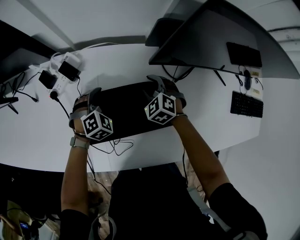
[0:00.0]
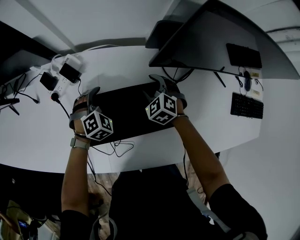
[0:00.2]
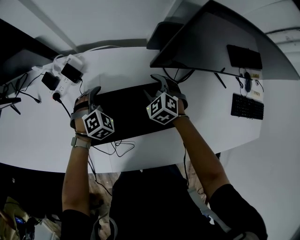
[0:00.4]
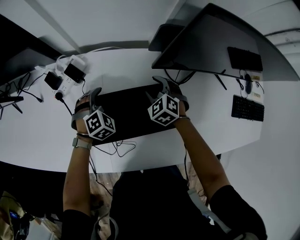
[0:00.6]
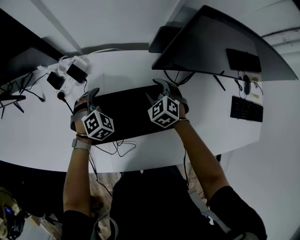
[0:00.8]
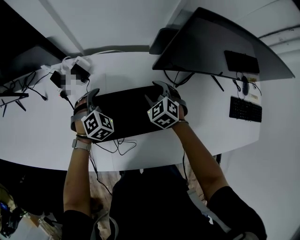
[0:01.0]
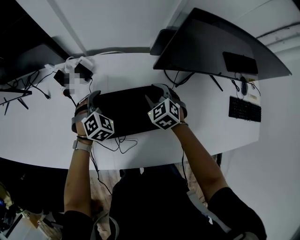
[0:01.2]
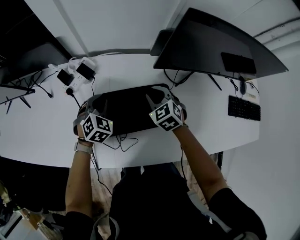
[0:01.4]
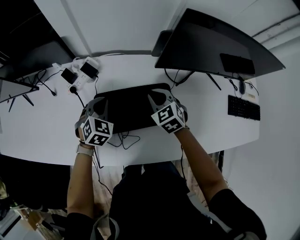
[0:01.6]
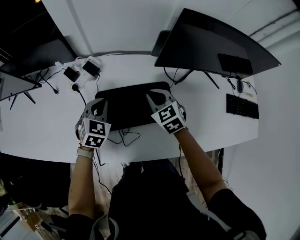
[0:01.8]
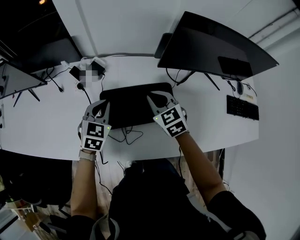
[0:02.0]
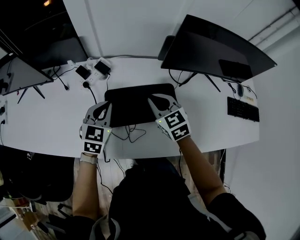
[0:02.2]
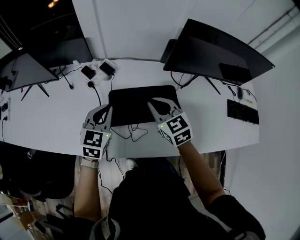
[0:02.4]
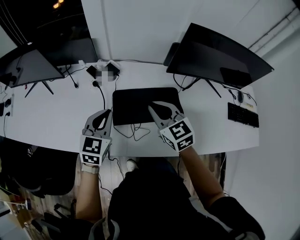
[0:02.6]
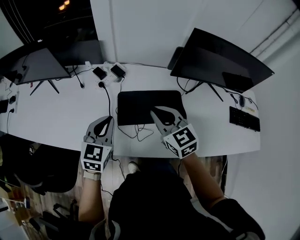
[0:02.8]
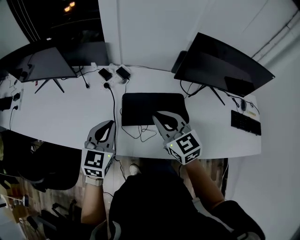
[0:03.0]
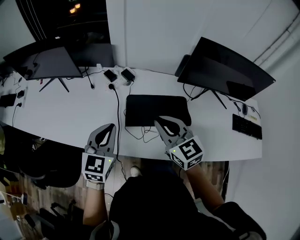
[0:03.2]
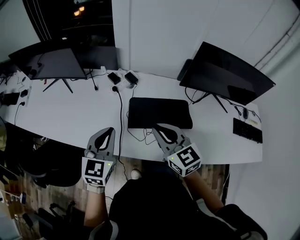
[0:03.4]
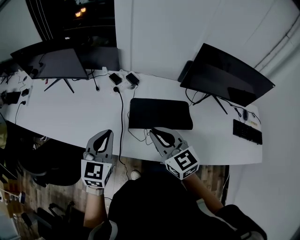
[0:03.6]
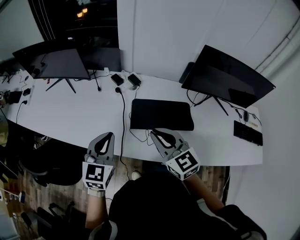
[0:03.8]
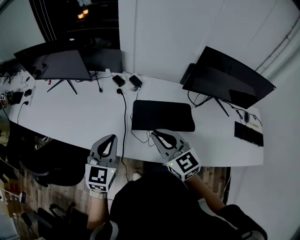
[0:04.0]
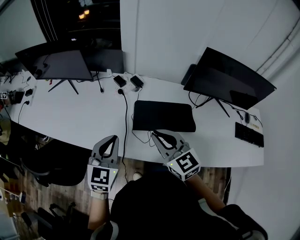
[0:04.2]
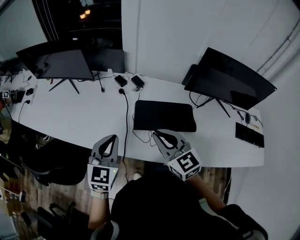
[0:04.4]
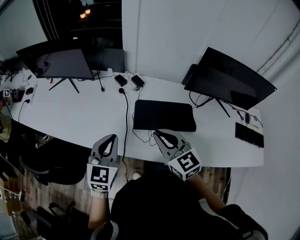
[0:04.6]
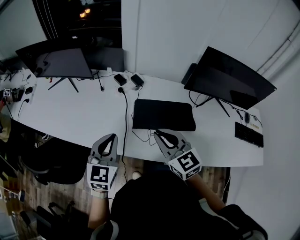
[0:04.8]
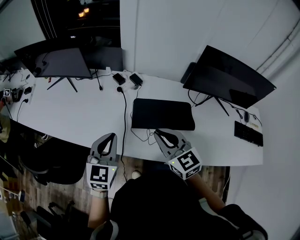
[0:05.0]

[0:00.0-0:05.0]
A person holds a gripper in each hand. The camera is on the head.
0:00.0 to 0:01.6: The two grippers go some 10 cm upward and backward. The right gripper closes up; the left gripper turns by approximately 20 degrees, and closes up.
0:01.6 to 0:03.4: Both grippers move backward, upward and to the left, about 35 cm. The right gripper turns by some 30 degrees, while the left gripper rotates approximately 40 degrees.
0:03.4 to 0:05.0: The grippers make only small movements.

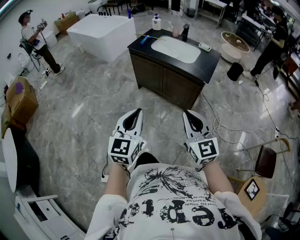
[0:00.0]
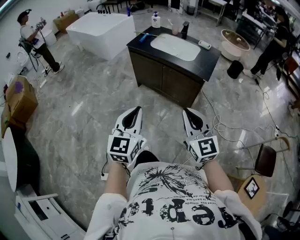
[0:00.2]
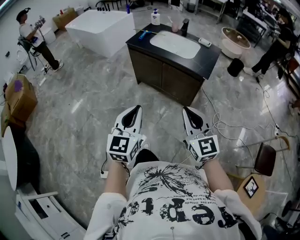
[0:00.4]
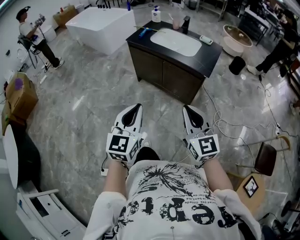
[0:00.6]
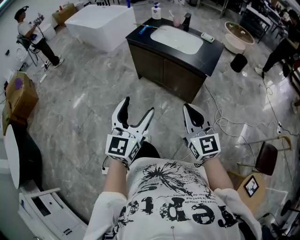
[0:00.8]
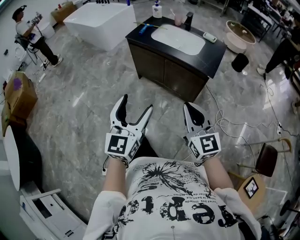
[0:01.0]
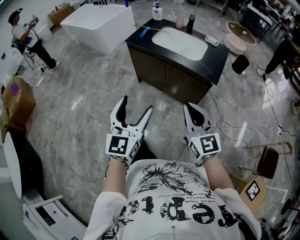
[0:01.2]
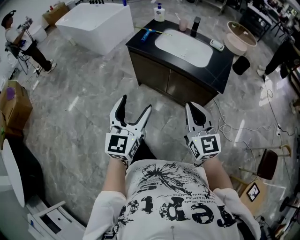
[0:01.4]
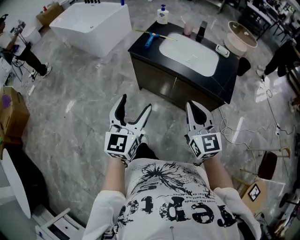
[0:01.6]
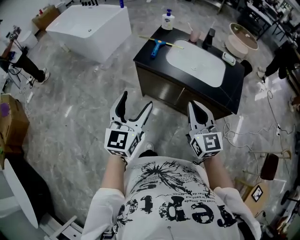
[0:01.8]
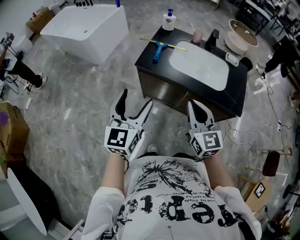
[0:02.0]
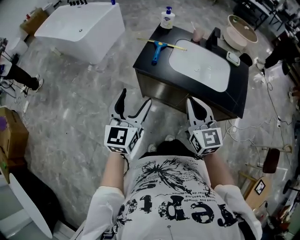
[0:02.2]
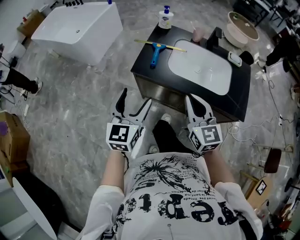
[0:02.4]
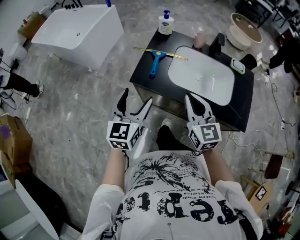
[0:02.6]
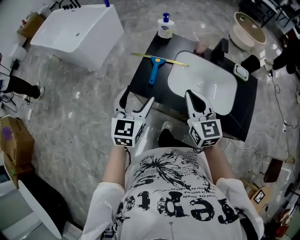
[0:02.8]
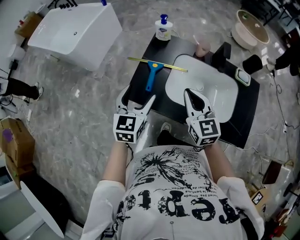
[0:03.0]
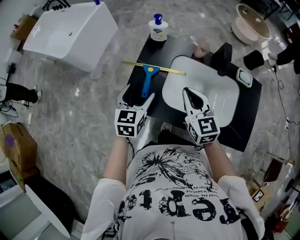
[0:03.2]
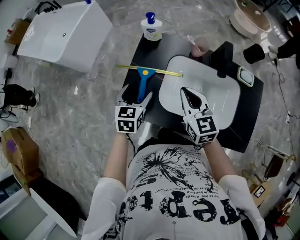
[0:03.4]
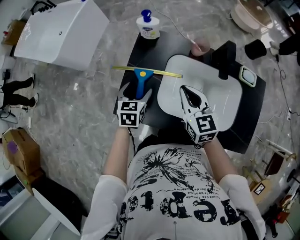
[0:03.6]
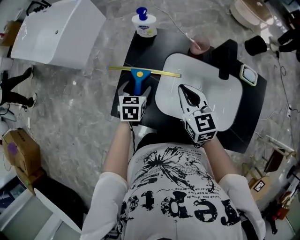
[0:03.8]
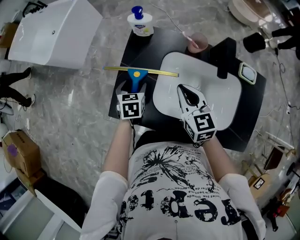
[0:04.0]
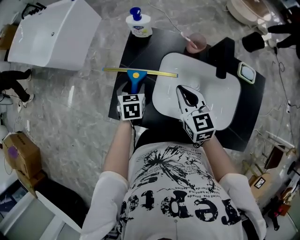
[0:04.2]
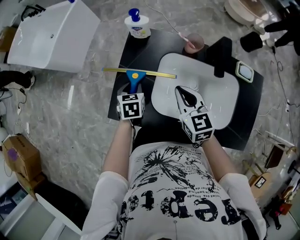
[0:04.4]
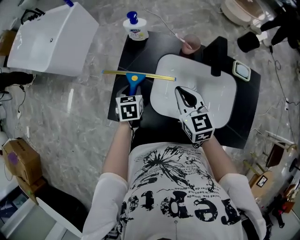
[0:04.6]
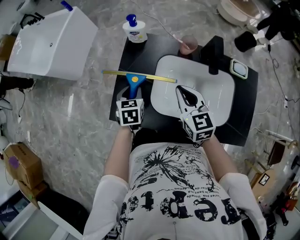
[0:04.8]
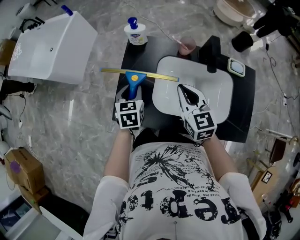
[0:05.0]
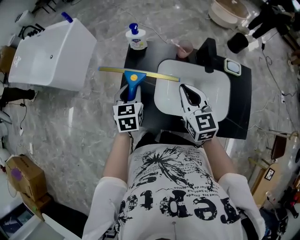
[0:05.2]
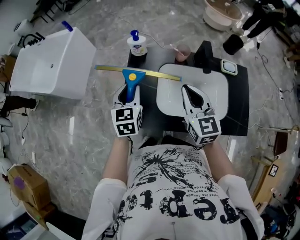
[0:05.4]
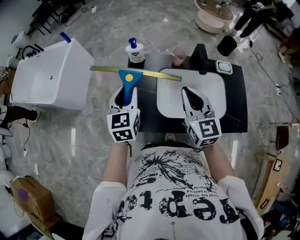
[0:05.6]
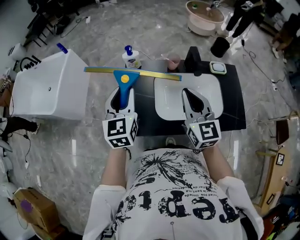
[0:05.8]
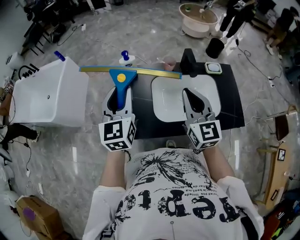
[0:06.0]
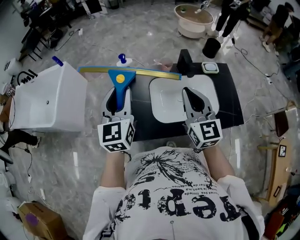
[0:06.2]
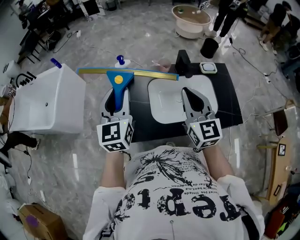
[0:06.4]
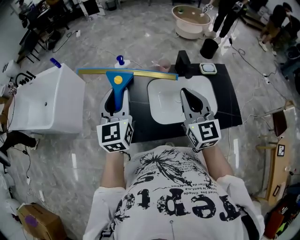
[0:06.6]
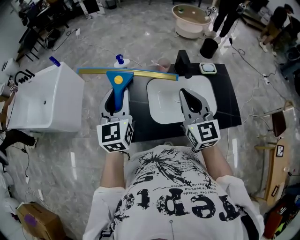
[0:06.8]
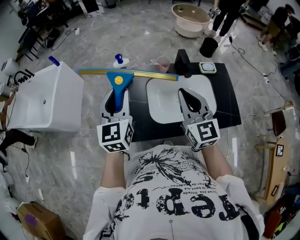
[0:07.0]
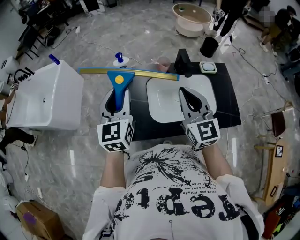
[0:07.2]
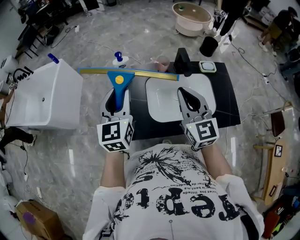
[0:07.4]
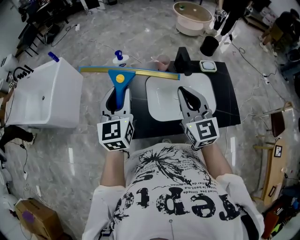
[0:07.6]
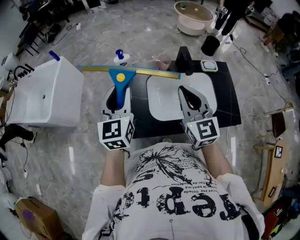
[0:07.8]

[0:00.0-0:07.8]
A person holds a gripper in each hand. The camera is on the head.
0:00.0 to 0:01.6: The two grippers go approximately 35 cm forward. The left gripper opens its fingers.
0:01.6 to 0:03.2: The two grippers travel together, forward, roughly 60 cm. The left gripper swivels about 30 degrees.
0:03.2 to 0:04.6: The left gripper moves downward and forward, approximately 20 cm, rotates approximately 20 degrees, and closes its fingers. Meanwhile the right gripper moves downward and forward, approximately 10 cm.
0:04.6 to 0:06.2: The right gripper travels upward and backward by approximately 25 cm, and changes its angle by about 40 degrees; the left gripper is displaced upward by roughly 35 cm, and tips its fingers upward by approximately 50 degrees.
0:06.2 to 0:07.8: The grippers make only small movements.

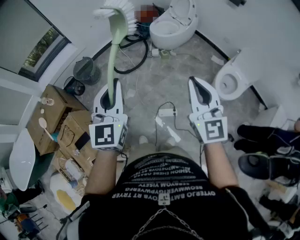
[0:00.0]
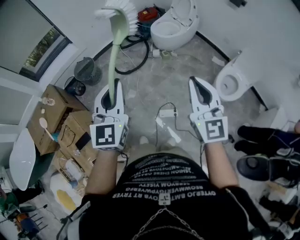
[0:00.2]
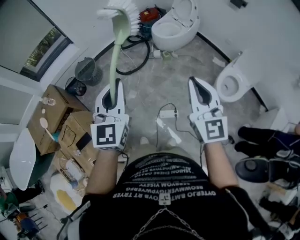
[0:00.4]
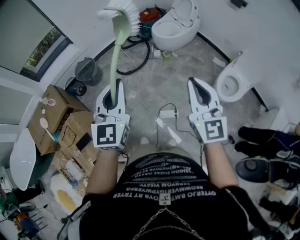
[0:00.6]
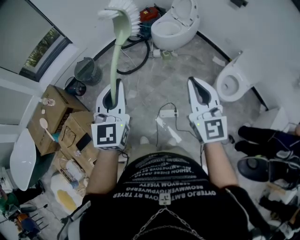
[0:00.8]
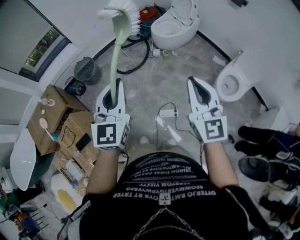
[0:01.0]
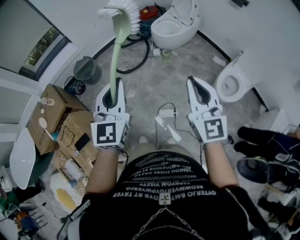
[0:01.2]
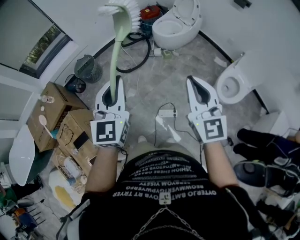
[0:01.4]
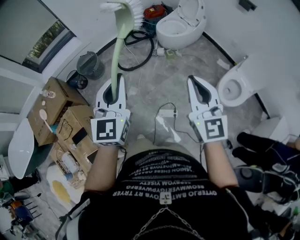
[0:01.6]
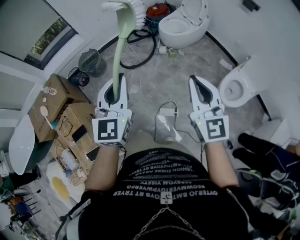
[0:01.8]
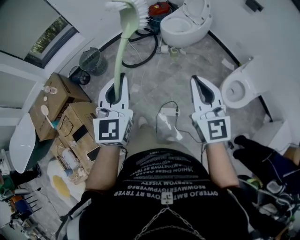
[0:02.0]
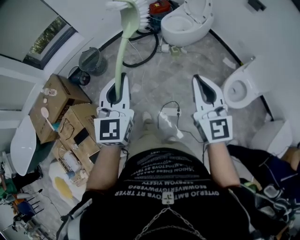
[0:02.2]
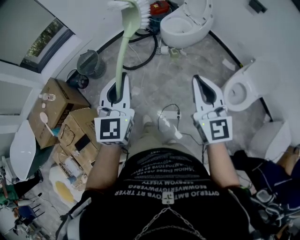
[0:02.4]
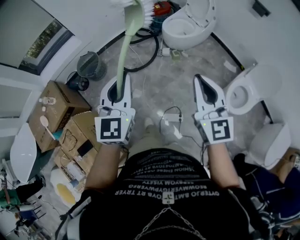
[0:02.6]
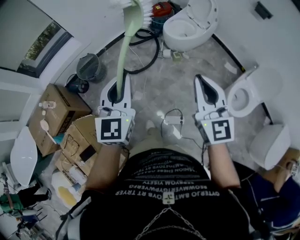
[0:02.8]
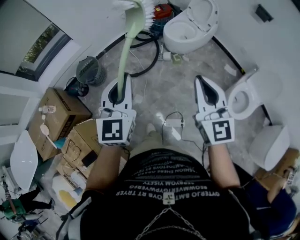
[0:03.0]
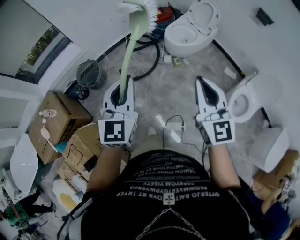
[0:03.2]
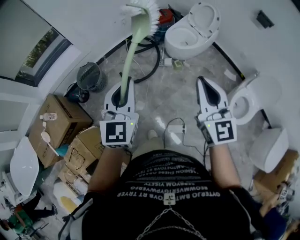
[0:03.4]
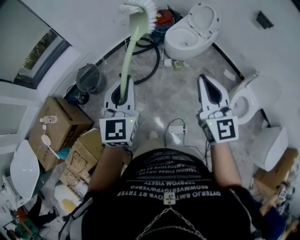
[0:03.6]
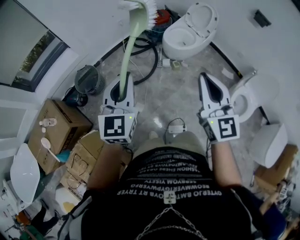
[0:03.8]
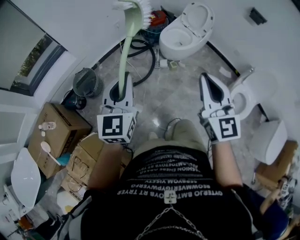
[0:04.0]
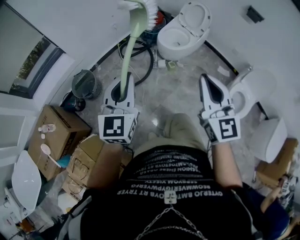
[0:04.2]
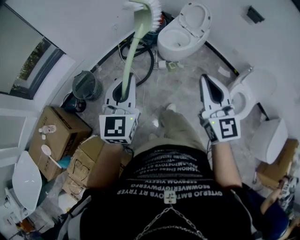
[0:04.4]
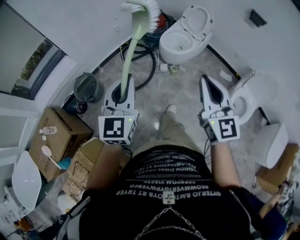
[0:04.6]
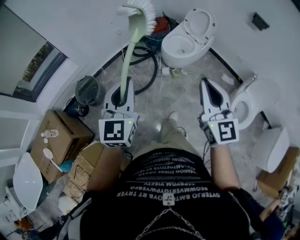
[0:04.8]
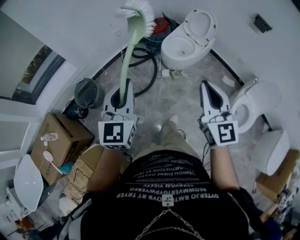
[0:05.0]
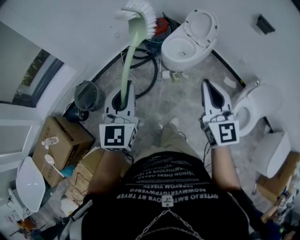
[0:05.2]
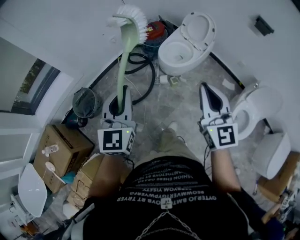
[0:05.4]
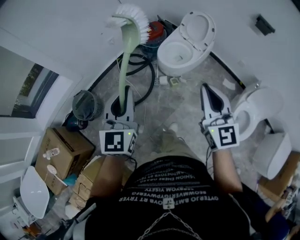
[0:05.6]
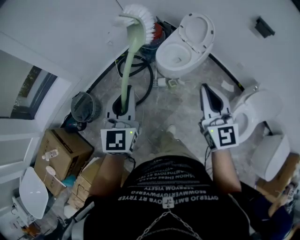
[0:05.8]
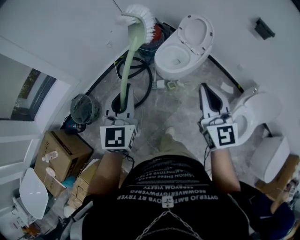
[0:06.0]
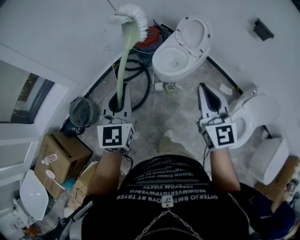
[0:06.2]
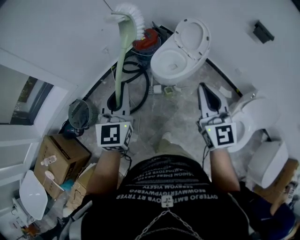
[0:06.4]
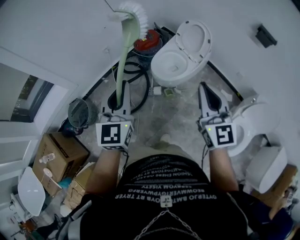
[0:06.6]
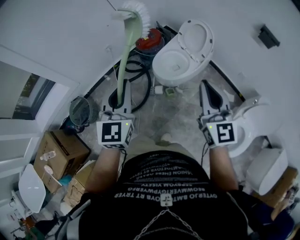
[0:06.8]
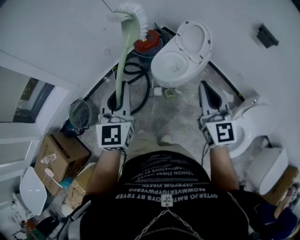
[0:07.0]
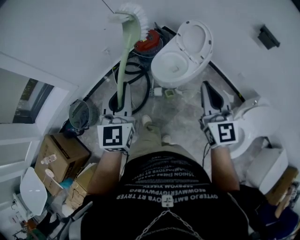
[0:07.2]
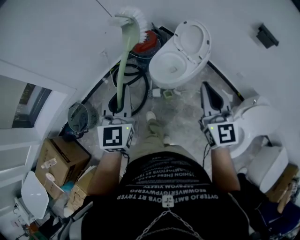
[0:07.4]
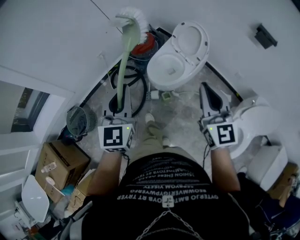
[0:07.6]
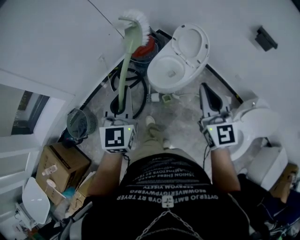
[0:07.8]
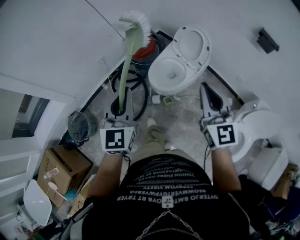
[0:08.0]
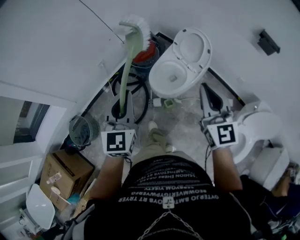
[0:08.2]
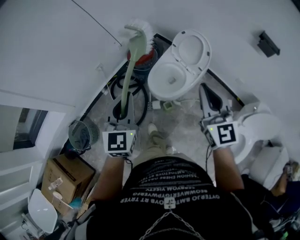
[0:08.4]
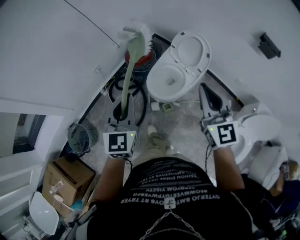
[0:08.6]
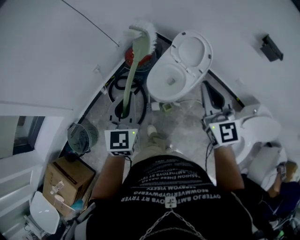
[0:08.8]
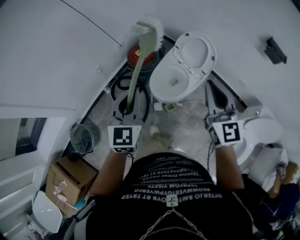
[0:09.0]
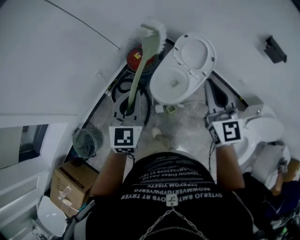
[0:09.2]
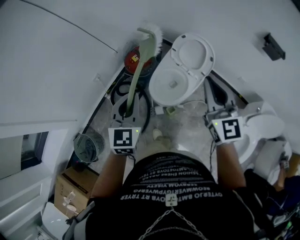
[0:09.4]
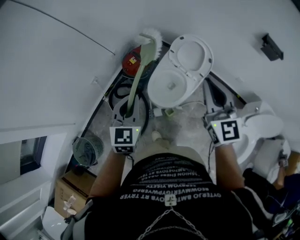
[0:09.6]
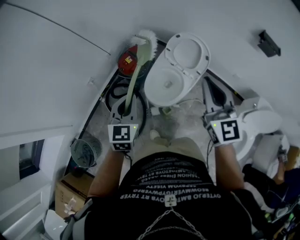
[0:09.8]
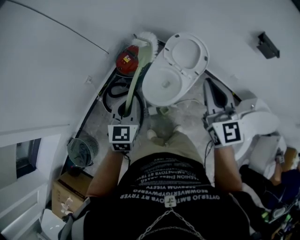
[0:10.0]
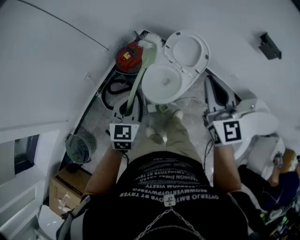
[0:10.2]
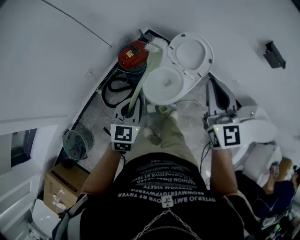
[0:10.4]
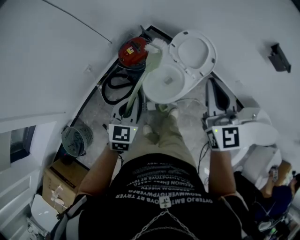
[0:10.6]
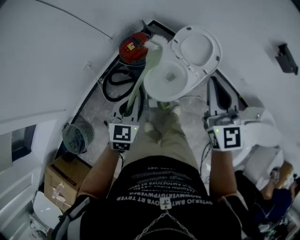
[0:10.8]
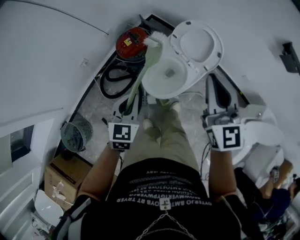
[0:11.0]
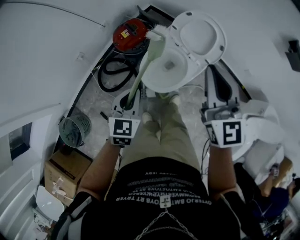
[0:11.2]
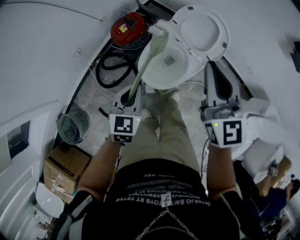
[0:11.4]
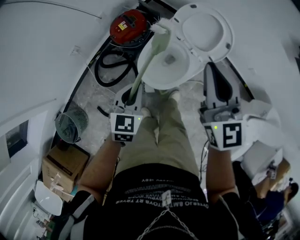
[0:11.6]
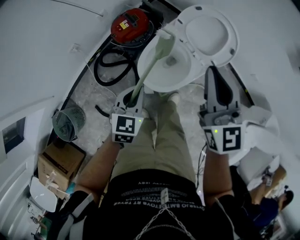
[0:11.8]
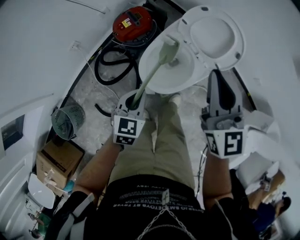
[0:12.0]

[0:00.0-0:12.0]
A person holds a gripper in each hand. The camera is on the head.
0:00.0 to 0:01.6: The left gripper shifts by roughly 5 cm.
0:01.6 to 0:03.0: The two grippers go some 20 cm forward.
0:03.0 to 0:04.4: The two grippers go roughly 5 cm forward.
0:04.4 to 0:06.0: The two grippers go approximately 25 cm forward.
0:06.0 to 0:07.6: Both grippers travel together forward and to the right, approximately 15 cm.
0:07.6 to 0:09.0: Both grippers travel together forward, roughly 20 cm.
0:09.0 to 0:10.4: The right gripper travels forward by about 5 cm; the left gripper moves downward, about 15 cm.
0:10.4 to 0:12.0: The right gripper moves downward and forward, roughly 25 cm. Meanwhile the left gripper heads downward, covering about 20 cm.
